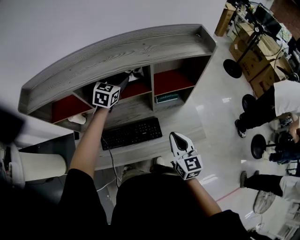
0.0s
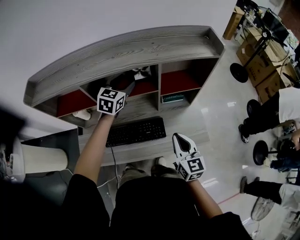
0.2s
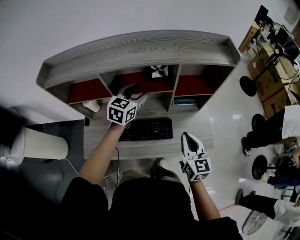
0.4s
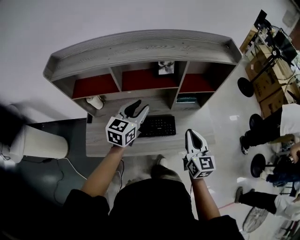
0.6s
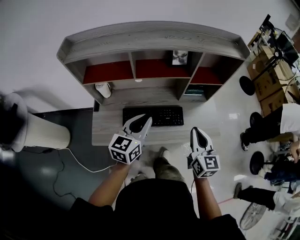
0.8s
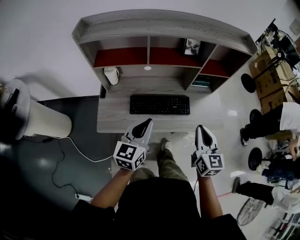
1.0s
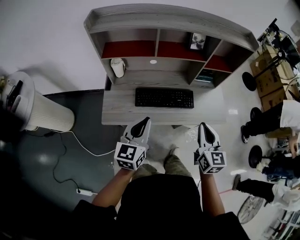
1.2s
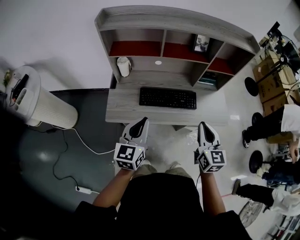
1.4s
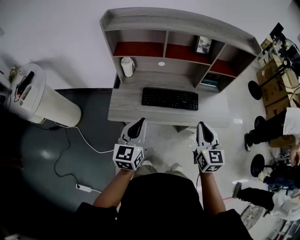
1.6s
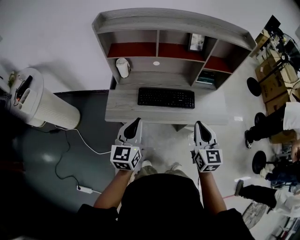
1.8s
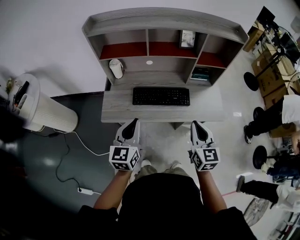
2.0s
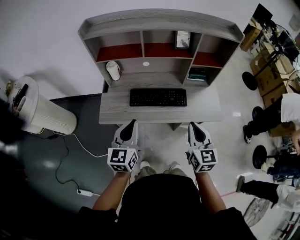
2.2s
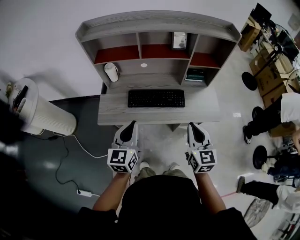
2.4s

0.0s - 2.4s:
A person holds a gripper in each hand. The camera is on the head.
0.0s - 1.2s: The left gripper shifts roughly 50 cm backward, changes its angle by roughly 30 degrees, and closes up. Meanwhile the right gripper moves backward and to the left, roughly 20 cm.
1.2s - 2.4s: The left gripper shifts approximately 5 cm backward; the right gripper ends up some 5 cm from where it was.

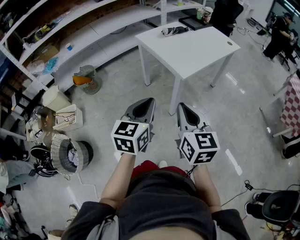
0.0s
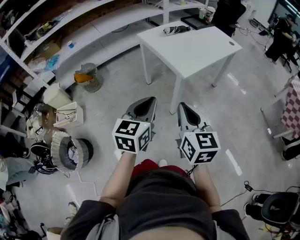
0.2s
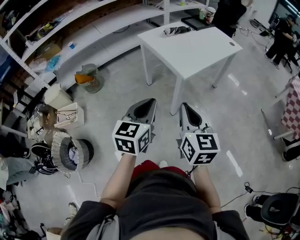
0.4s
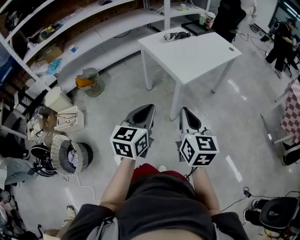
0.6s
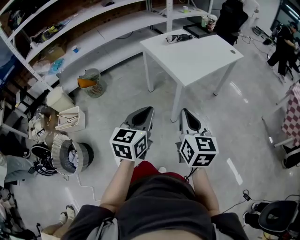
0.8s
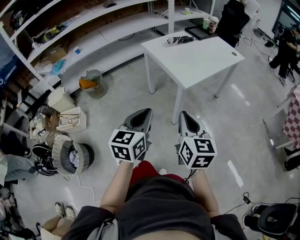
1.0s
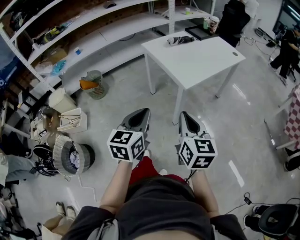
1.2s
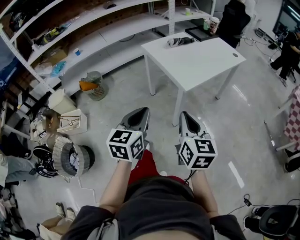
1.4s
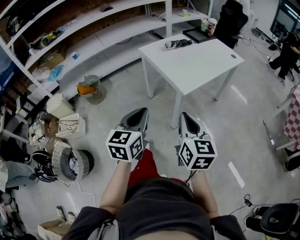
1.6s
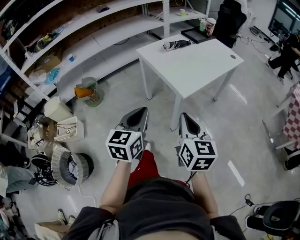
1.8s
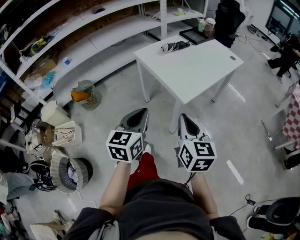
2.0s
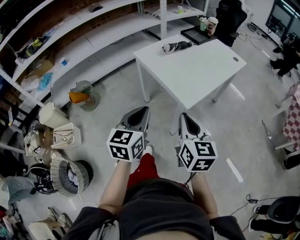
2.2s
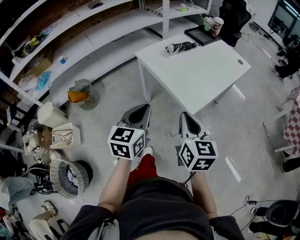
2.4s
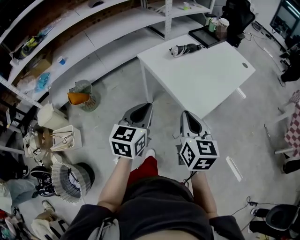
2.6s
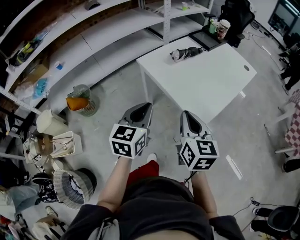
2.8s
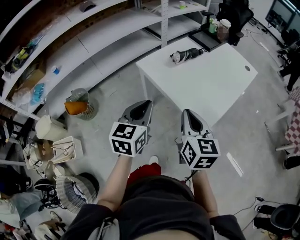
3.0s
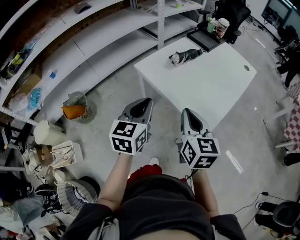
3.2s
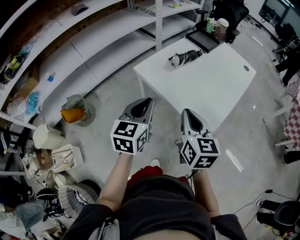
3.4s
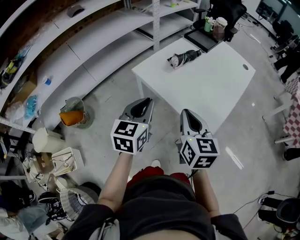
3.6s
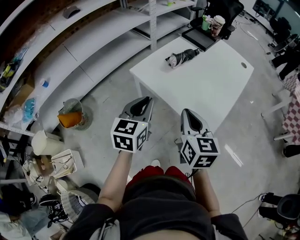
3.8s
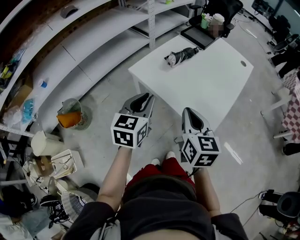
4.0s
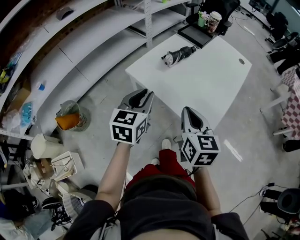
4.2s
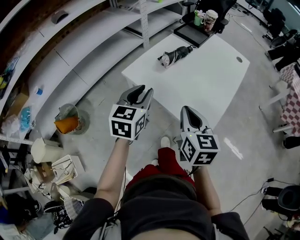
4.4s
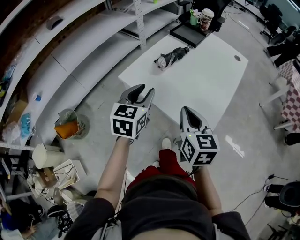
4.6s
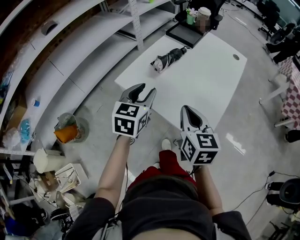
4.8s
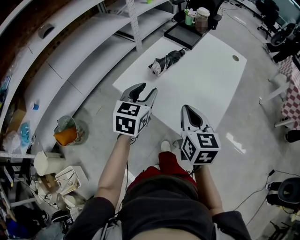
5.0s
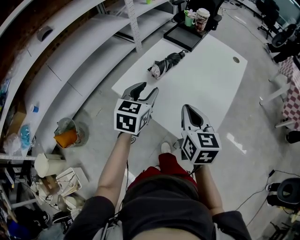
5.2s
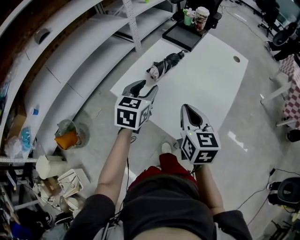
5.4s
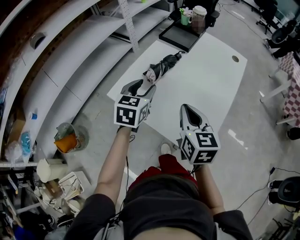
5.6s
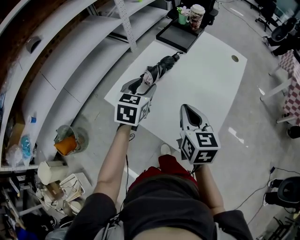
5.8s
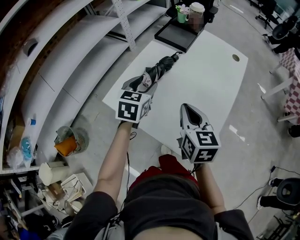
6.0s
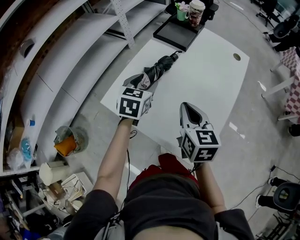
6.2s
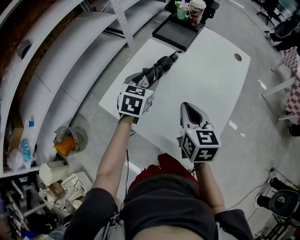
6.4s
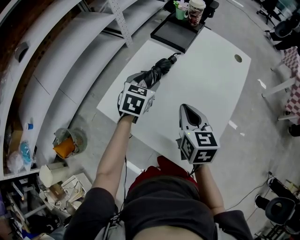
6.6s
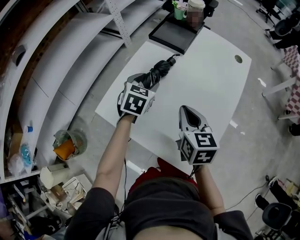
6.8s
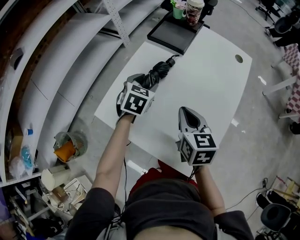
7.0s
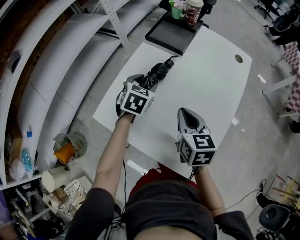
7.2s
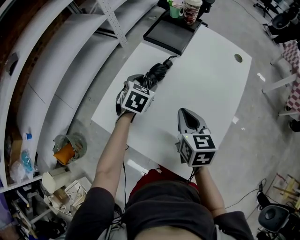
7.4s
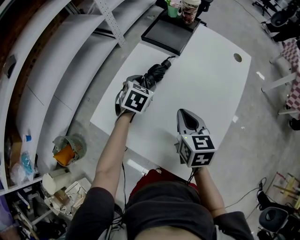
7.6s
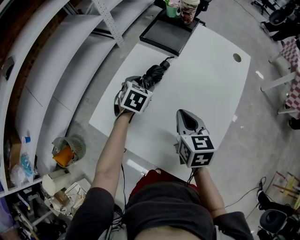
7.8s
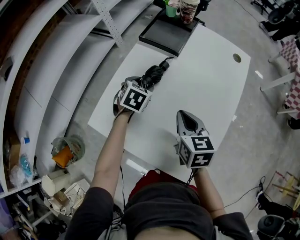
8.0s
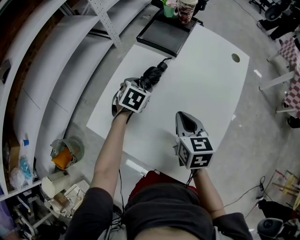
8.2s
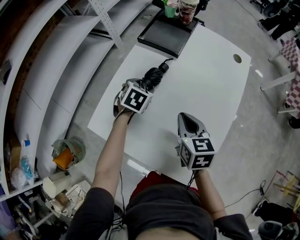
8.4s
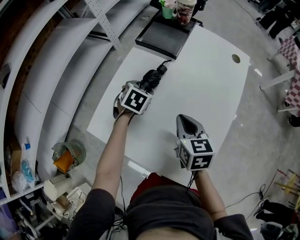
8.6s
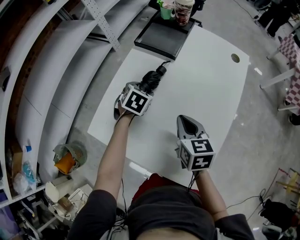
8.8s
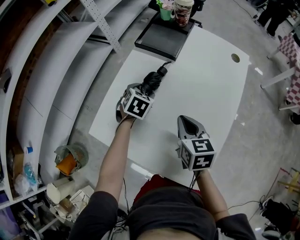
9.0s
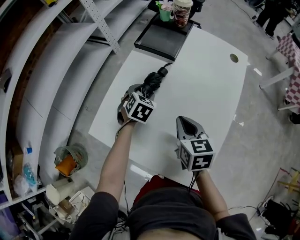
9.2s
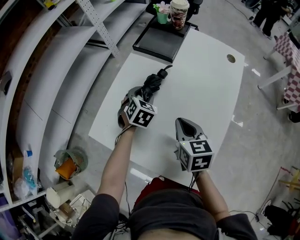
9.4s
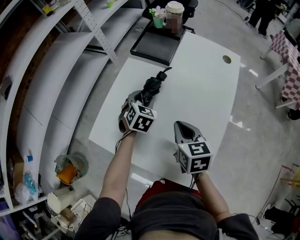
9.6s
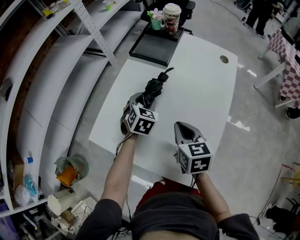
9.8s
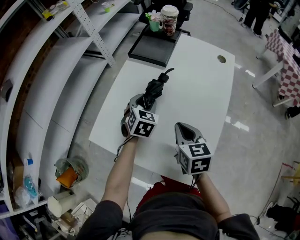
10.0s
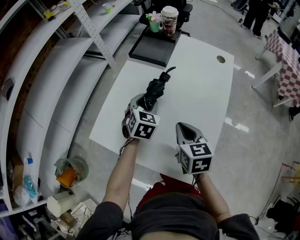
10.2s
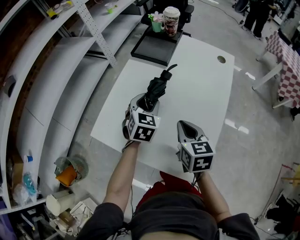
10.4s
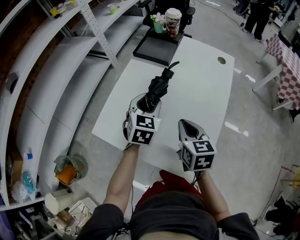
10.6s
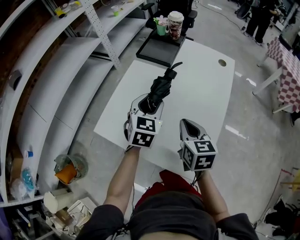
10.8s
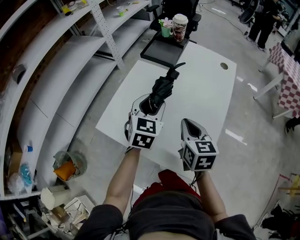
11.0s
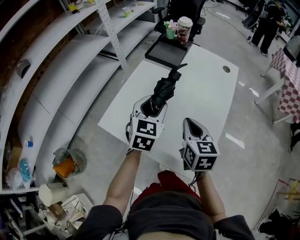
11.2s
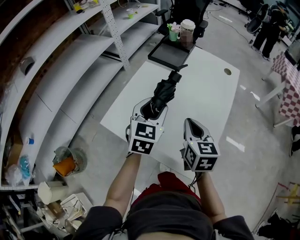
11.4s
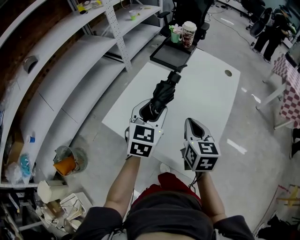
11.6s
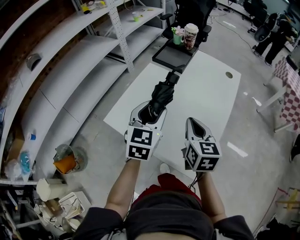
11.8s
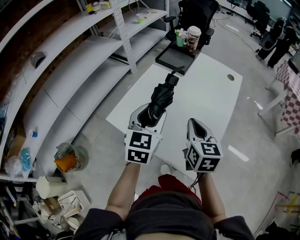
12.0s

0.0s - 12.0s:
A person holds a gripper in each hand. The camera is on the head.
0.0s - 1.6s: The right gripper shifts approximately 5 cm forward.
1.6s - 3.0s: The grippers both shift forward by approximately 30 cm.
3.0s - 4.4s: The left gripper shifts about 15 cm forward; the right gripper shifts about 10 cm forward.
4.4s - 6.0s: Both grippers travel together forward, some 20 cm. The left gripper opens its fingers.
6.0s - 7.6s: The two grippers go about 15 cm forward and downward. The left gripper rotates roughly 20 degrees.
7.6s - 9.0s: The grippers stay close to where they were, moving slightly.
9.0s - 10.4s: The left gripper travels upward and backward by roughly 10 cm, and turns by roughly 20 degrees, while the right gripper goes roughly 5 cm backward.
10.4s - 12.0s: The left gripper moves backward and upward, about 20 cm, and turns by approximately 20 degrees. Meanwhile the right gripper heads upward, covering roughly 10 cm.

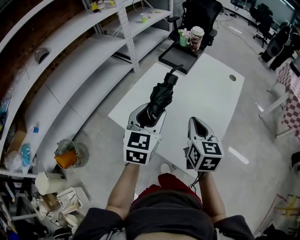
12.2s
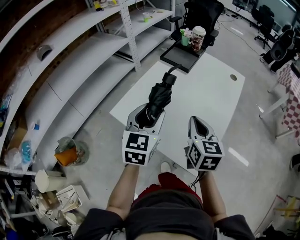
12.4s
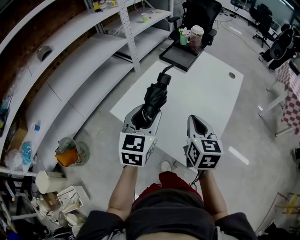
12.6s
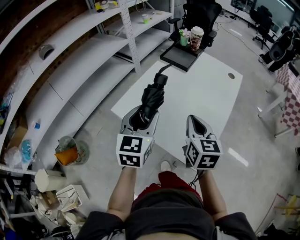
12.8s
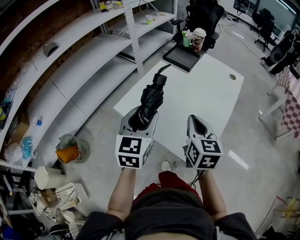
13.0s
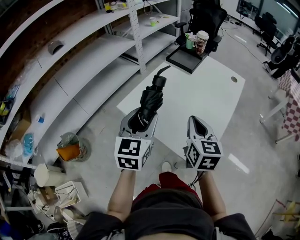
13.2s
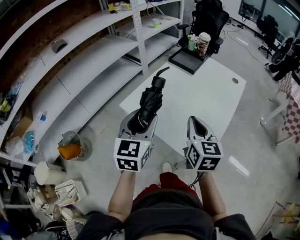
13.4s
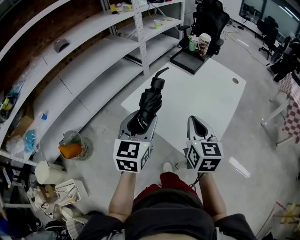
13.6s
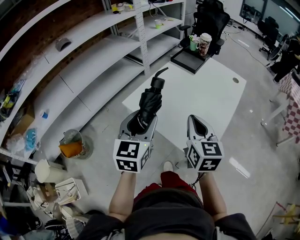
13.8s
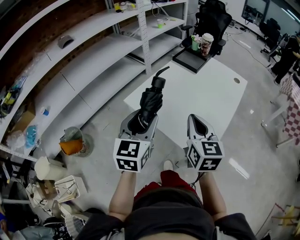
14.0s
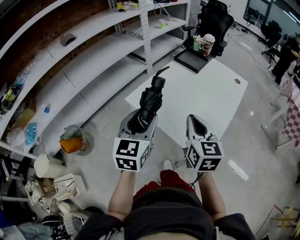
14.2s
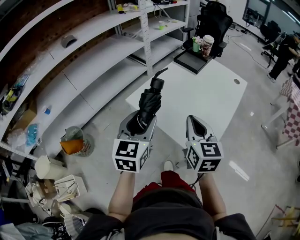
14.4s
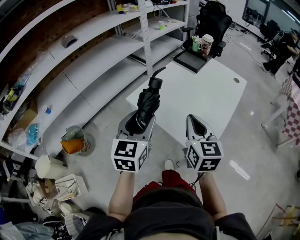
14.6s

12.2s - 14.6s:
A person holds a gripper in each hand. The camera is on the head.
12.2s - 13.4s: The left gripper travels backward and to the left by approximately 15 cm. The right gripper moves backward, roughly 10 cm.
13.4s - 14.6s: Both grippers travel together backward, about 5 cm.

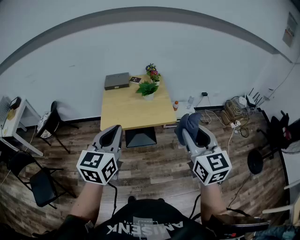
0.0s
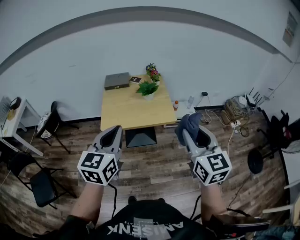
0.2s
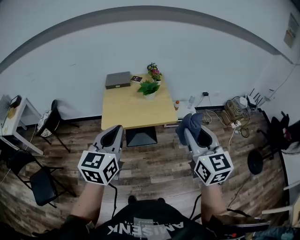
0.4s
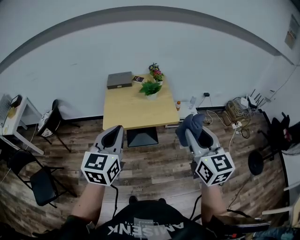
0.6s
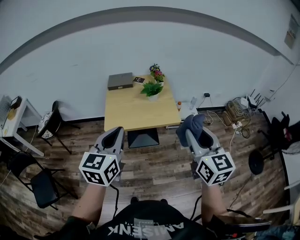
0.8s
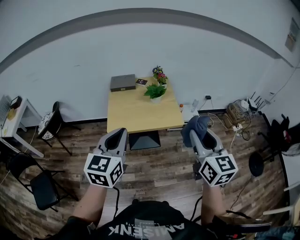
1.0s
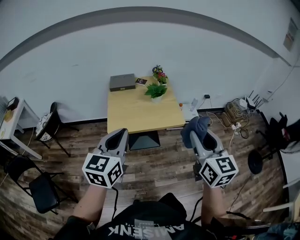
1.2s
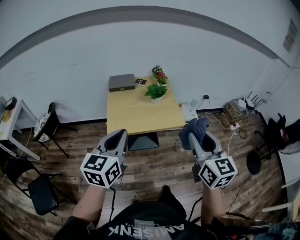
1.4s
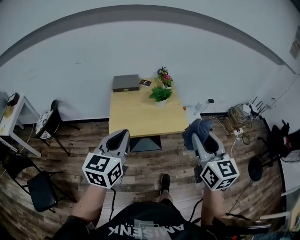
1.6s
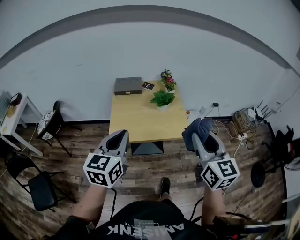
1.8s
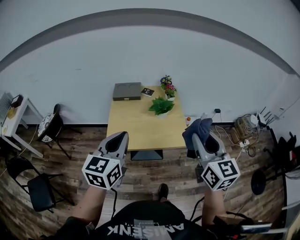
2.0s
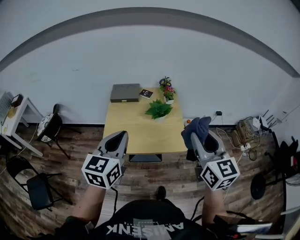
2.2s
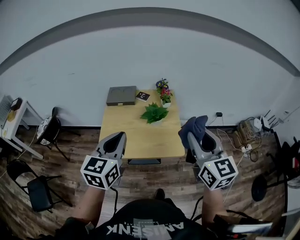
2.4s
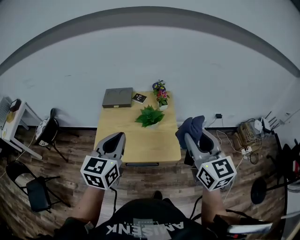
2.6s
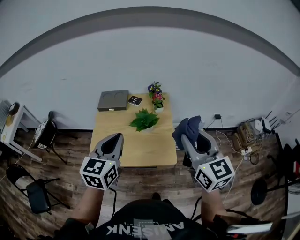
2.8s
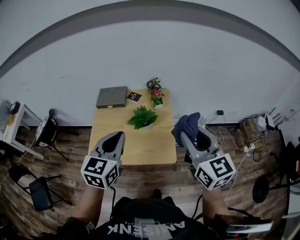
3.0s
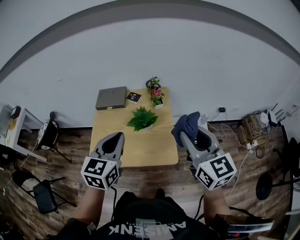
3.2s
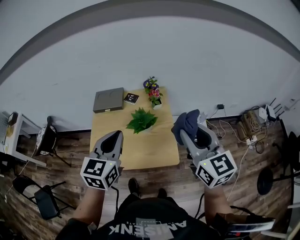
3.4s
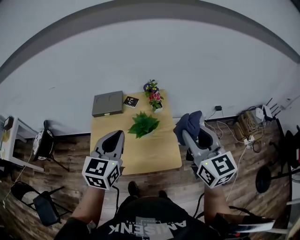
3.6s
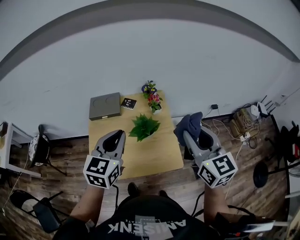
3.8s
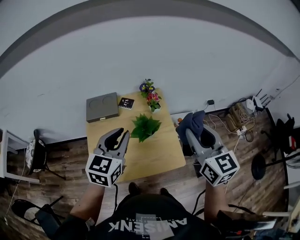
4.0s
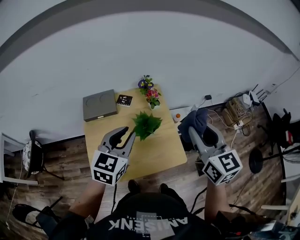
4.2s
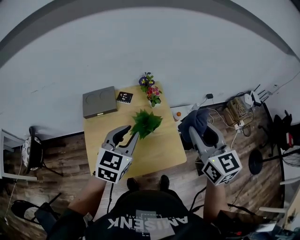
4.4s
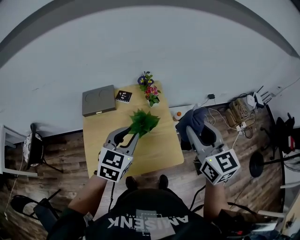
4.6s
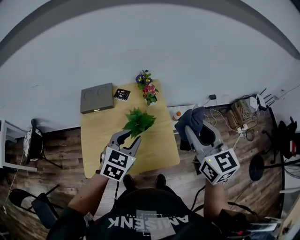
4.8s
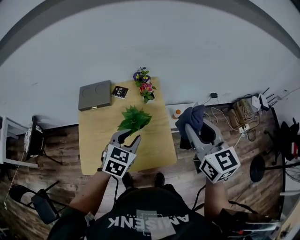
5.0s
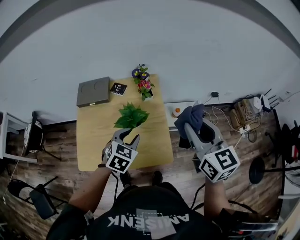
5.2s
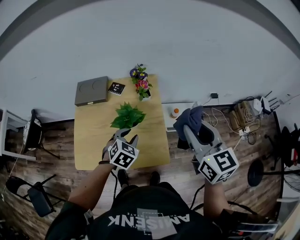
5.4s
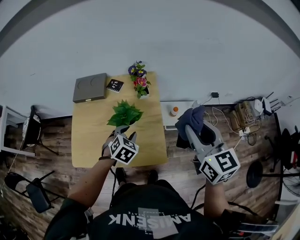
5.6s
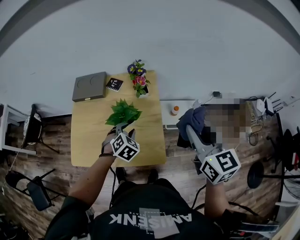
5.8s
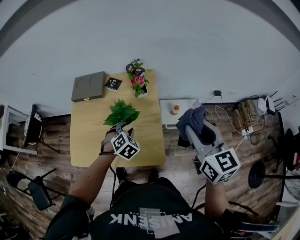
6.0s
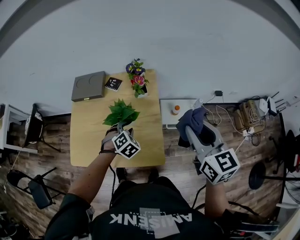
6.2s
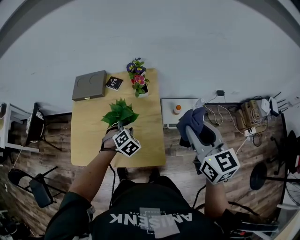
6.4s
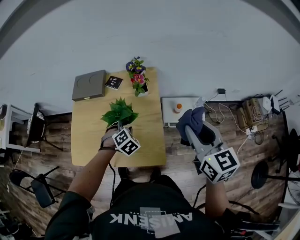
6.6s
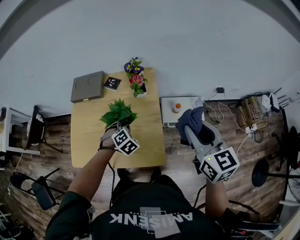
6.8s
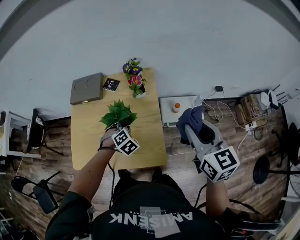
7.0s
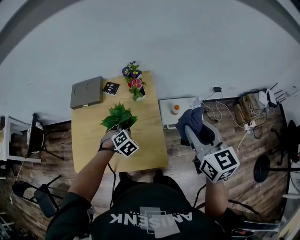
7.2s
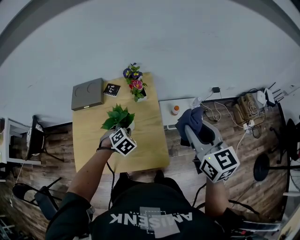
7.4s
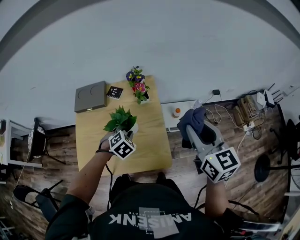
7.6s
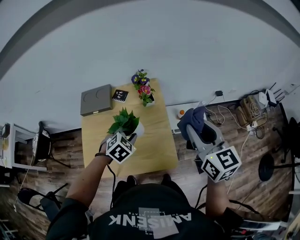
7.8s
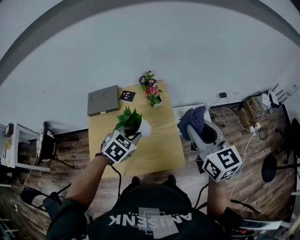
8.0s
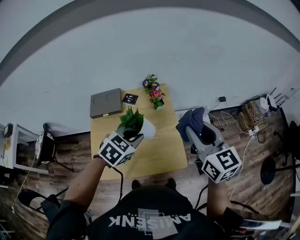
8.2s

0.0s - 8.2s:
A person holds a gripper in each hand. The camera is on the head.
0.0s - 1.6s: The two grippers go roughly 10 cm to the left and forward.
1.6s - 3.2s: Both grippers travel together forward and to the right, approximately 35 cm.
3.2s - 5.0s: The left gripper travels downward and forward by approximately 20 cm, changes its angle by about 30 degrees, and opens, while the right gripper shifts about 10 cm forward.
5.0s - 6.6s: The left gripper goes roughly 15 cm downward, and swivels roughly 40 degrees. Meanwhile the right gripper travels to the right and downward by roughly 10 cm.
6.6s - 8.2s: The right gripper changes place by about 15 cm. The left gripper heads upward, covering roughly 20 cm, and rotates approximately 40 degrees.
